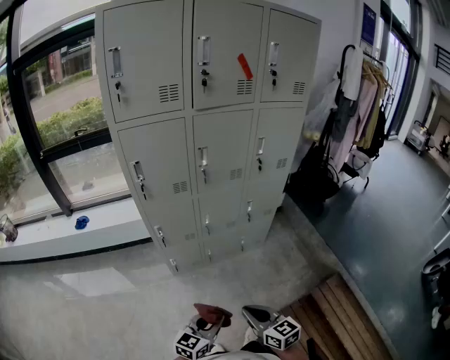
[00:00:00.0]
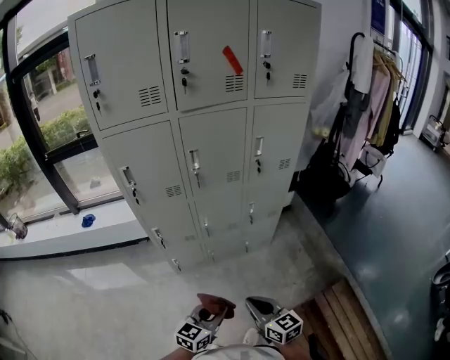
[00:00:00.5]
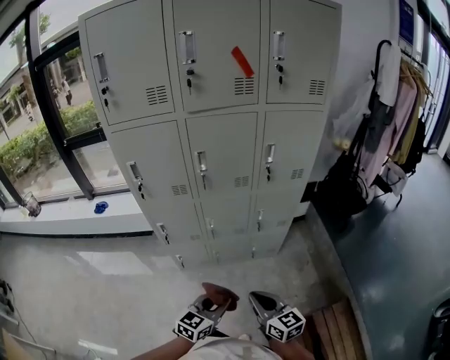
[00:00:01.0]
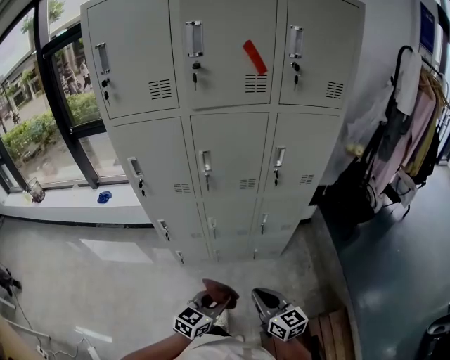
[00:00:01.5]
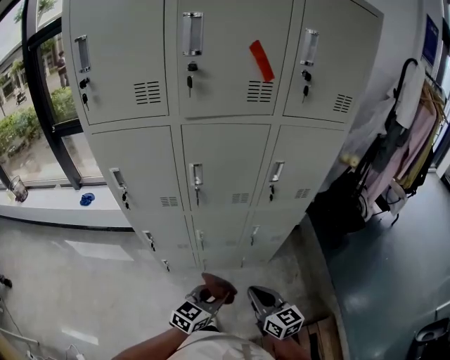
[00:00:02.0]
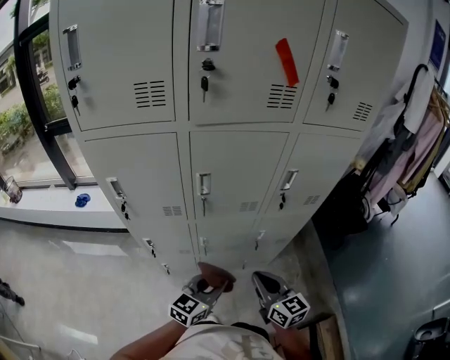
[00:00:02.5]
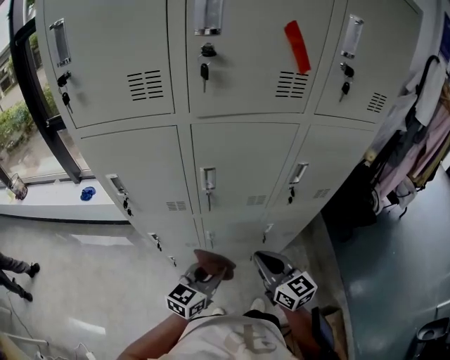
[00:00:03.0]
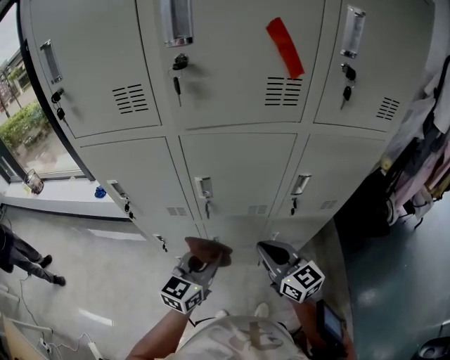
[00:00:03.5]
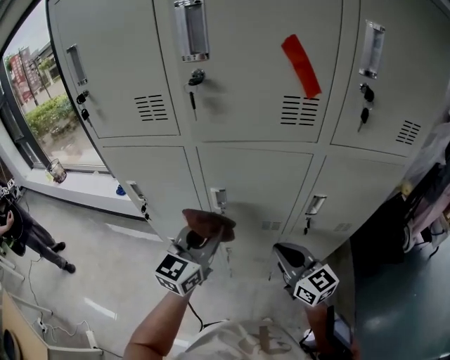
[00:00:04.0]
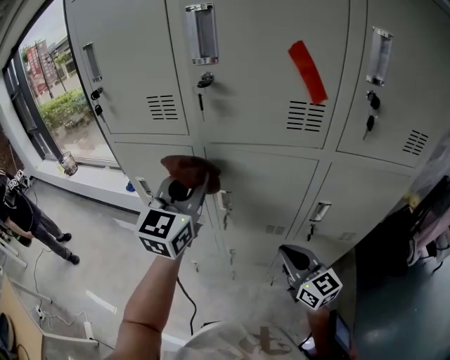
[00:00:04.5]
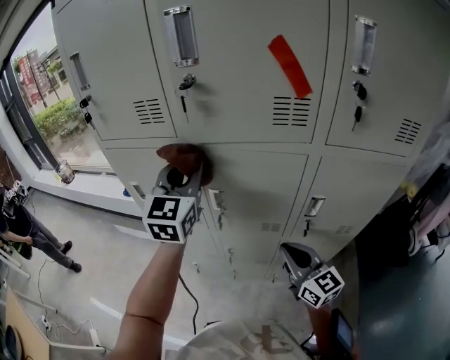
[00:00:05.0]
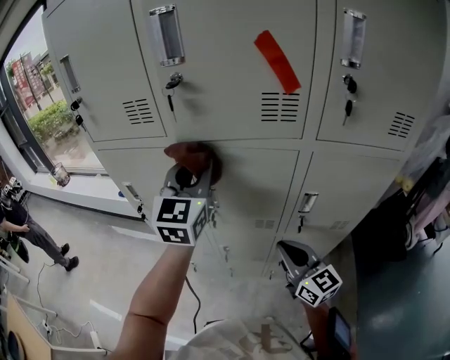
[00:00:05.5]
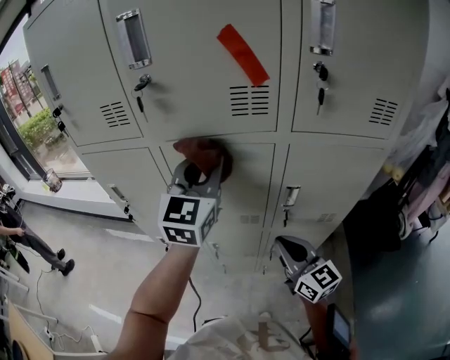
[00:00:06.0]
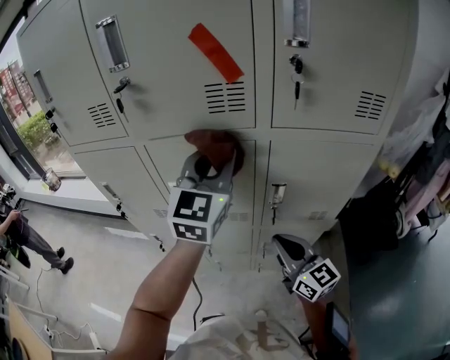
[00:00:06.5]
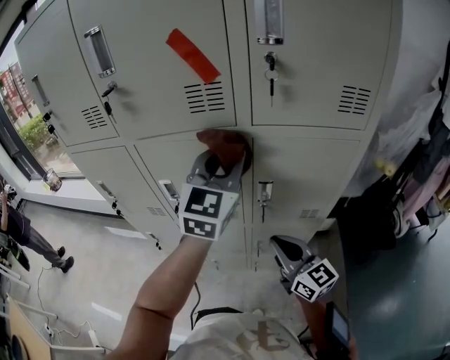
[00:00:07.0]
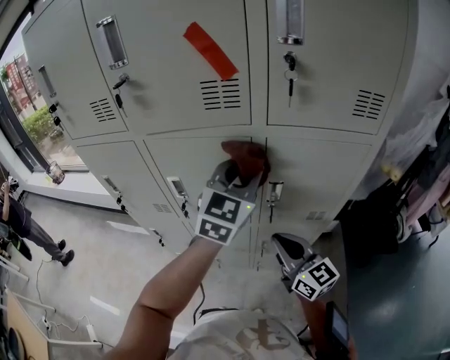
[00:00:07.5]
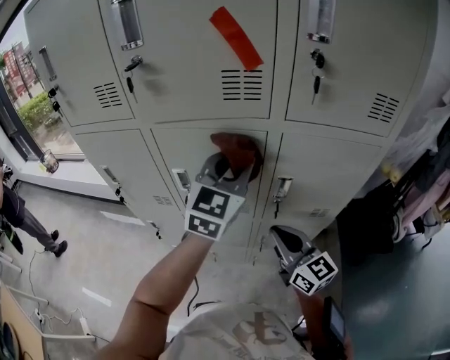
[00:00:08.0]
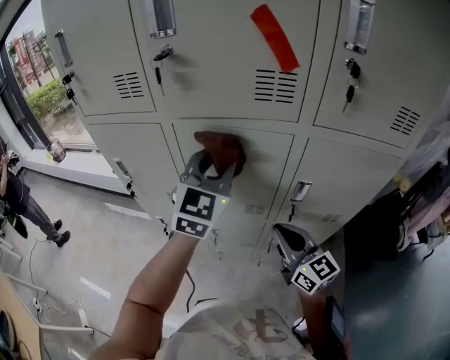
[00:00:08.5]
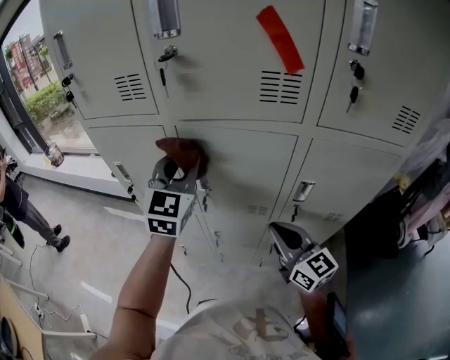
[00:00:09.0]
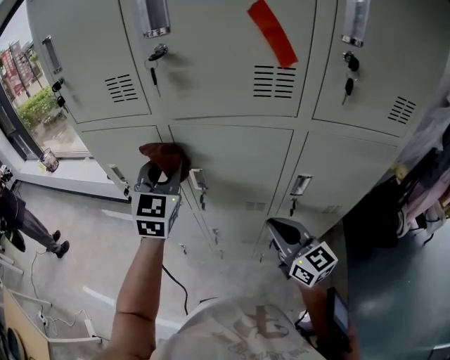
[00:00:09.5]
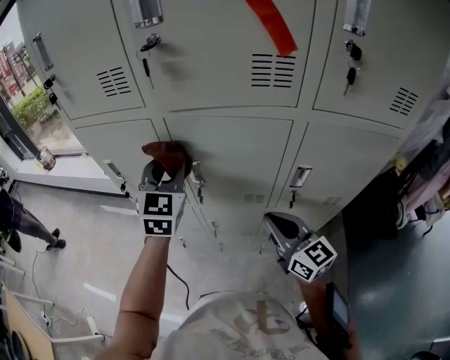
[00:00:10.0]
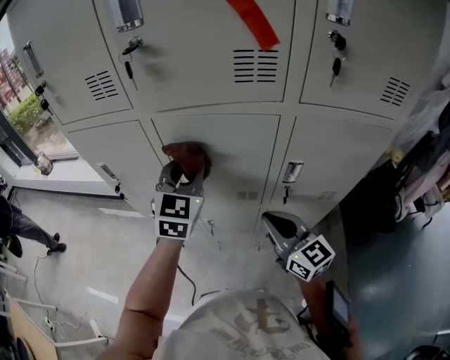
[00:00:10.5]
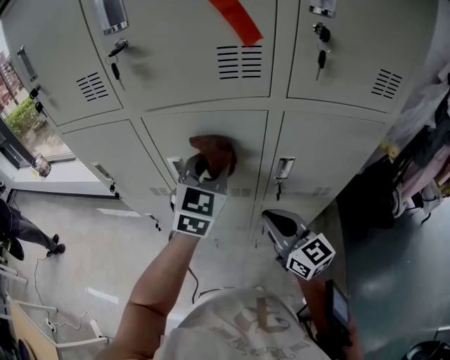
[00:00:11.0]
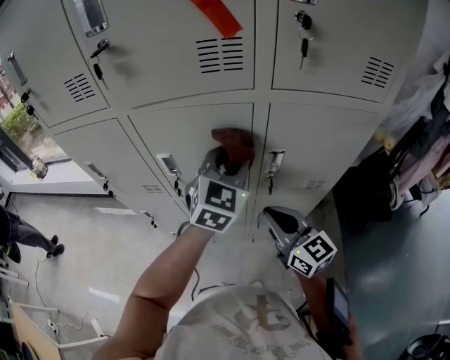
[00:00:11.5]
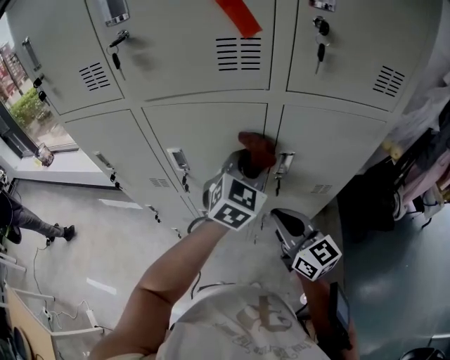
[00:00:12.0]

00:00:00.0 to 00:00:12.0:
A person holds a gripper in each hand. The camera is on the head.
00:00:00.0 to 00:00:02.0: The two grippers go some 30 cm forward and to the right.
00:00:02.0 to 00:00:04.0: Both grippers travel together forward and upward, some 30 cm. The left gripper changes its angle by roughly 30 degrees. The right gripper changes its angle by about 20 degrees.
00:00:04.0 to 00:00:06.0: The left gripper shifts roughly 20 cm upward, to the right and forward. Meanwhile the right gripper heads to the right, covering about 5 cm.
00:00:06.0 to 00:00:08.0: The left gripper is displaced to the right by about 10 cm.
00:00:08.0 to 00:00:10.0: The left gripper shifts some 20 cm to the left, and turns by approximately 20 degrees, while the right gripper goes about 5 cm to the left.
00:00:10.0 to 00:00:12.0: The right gripper moves to the right, roughly 5 cm; the left gripper moves to the right, about 25 cm, and turns by about 30 degrees.

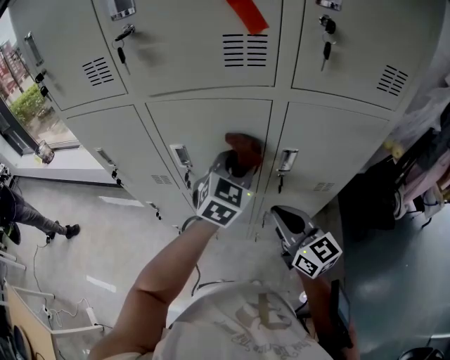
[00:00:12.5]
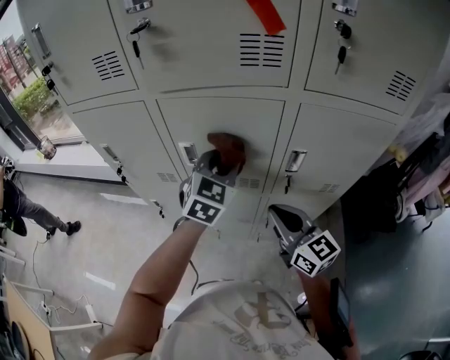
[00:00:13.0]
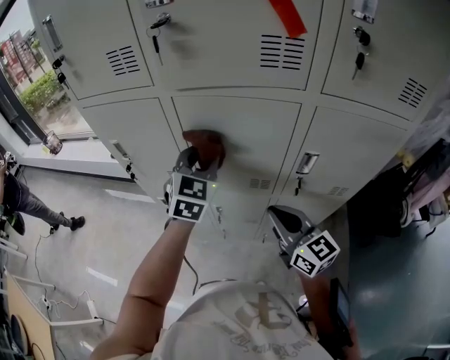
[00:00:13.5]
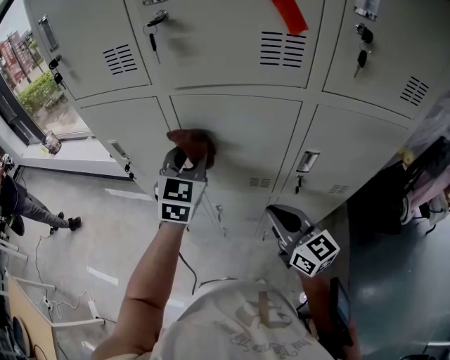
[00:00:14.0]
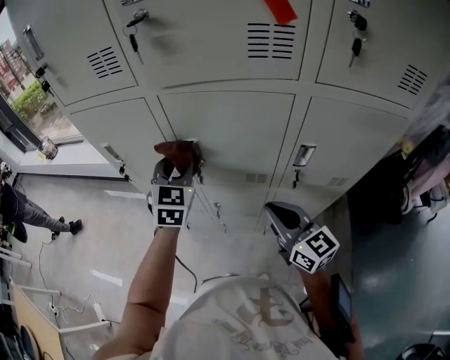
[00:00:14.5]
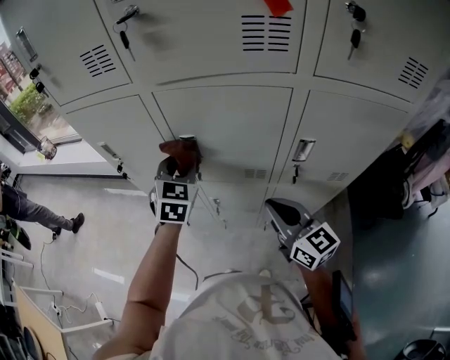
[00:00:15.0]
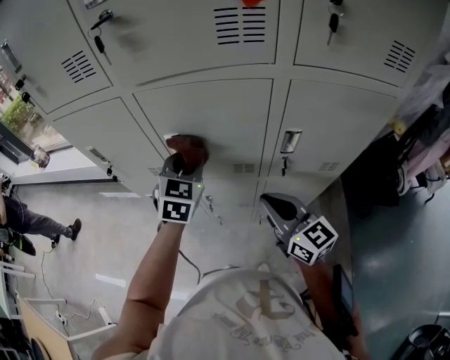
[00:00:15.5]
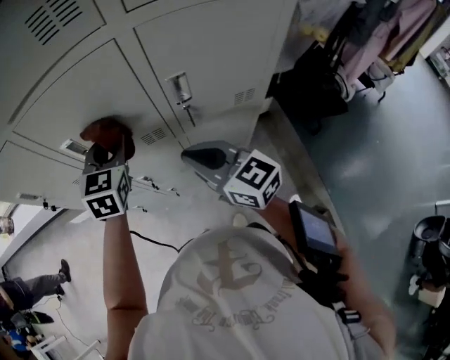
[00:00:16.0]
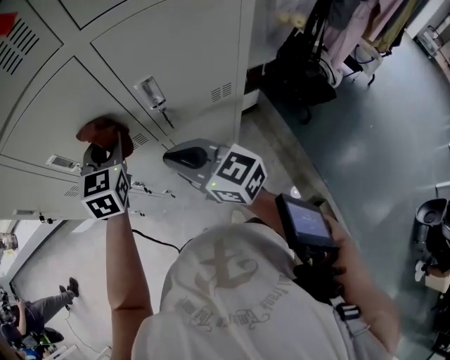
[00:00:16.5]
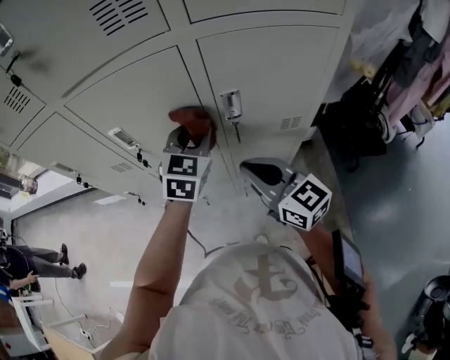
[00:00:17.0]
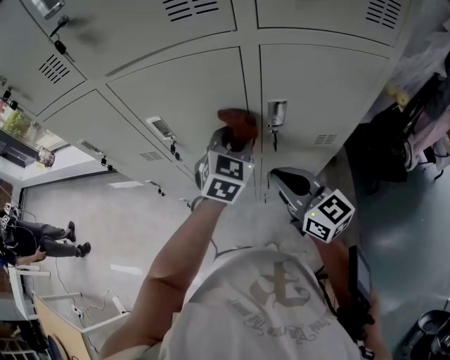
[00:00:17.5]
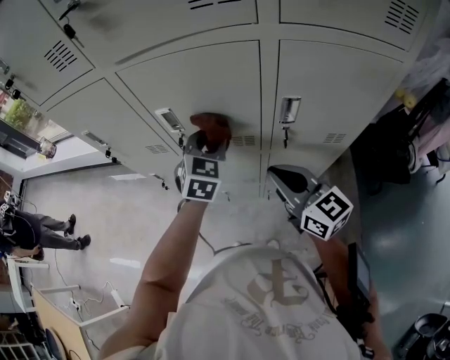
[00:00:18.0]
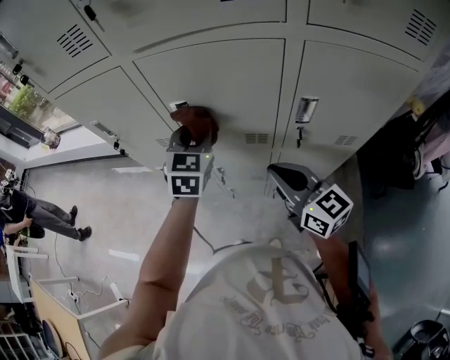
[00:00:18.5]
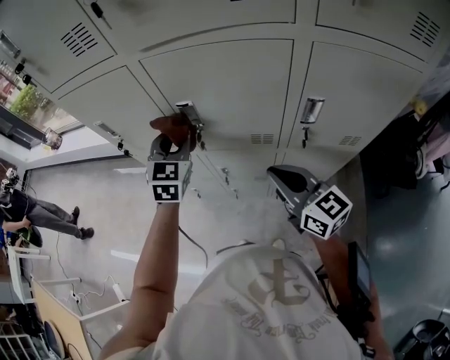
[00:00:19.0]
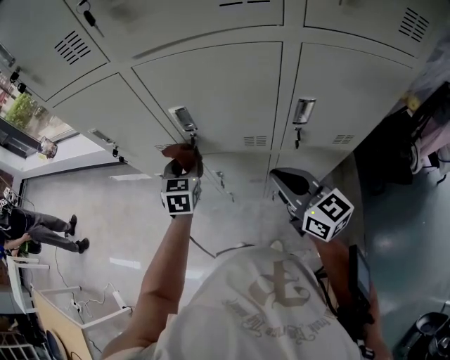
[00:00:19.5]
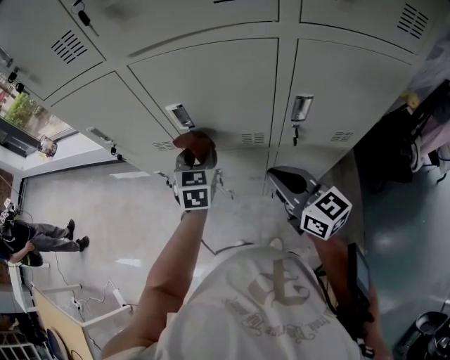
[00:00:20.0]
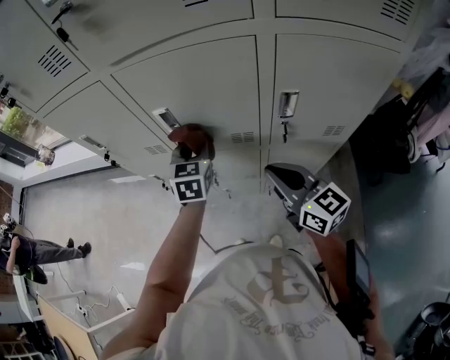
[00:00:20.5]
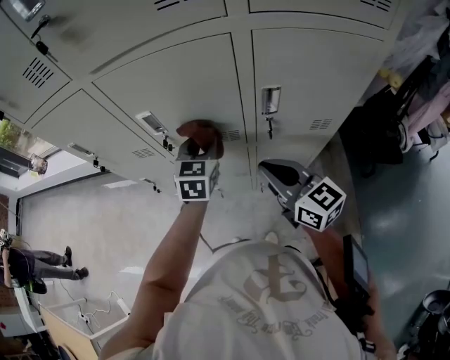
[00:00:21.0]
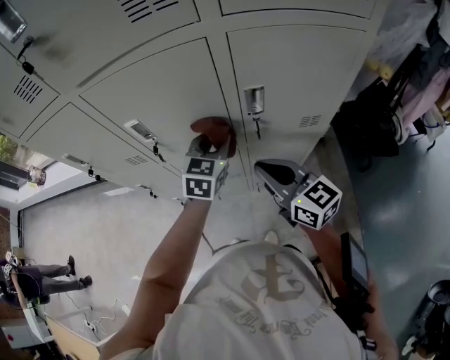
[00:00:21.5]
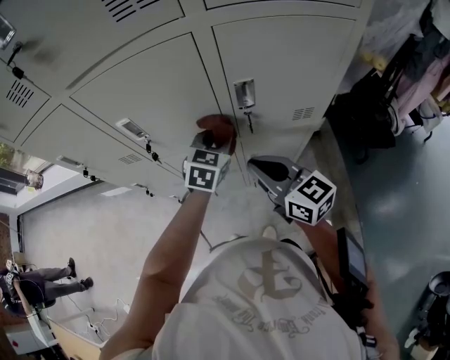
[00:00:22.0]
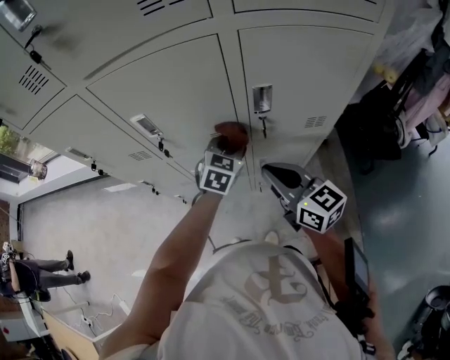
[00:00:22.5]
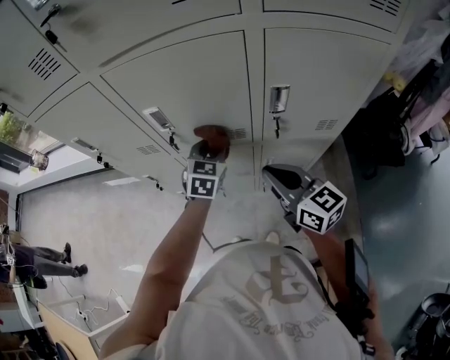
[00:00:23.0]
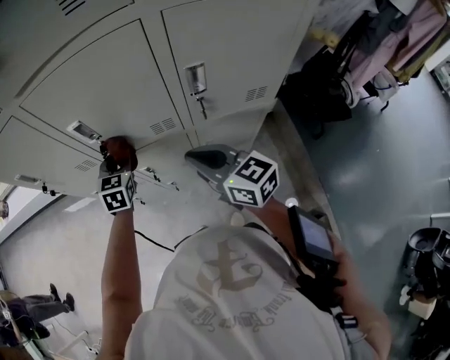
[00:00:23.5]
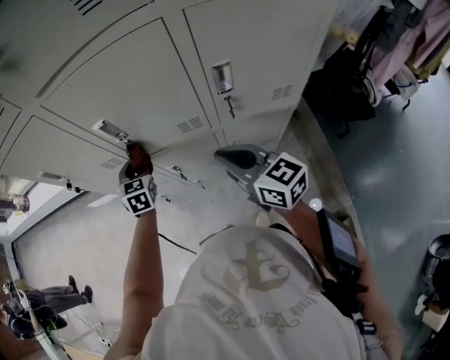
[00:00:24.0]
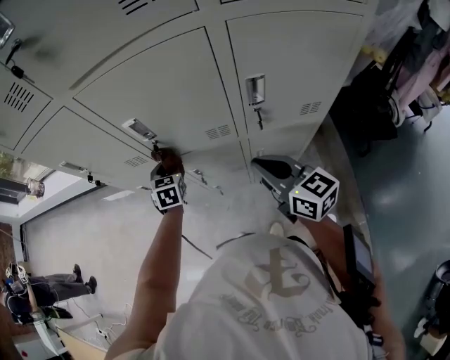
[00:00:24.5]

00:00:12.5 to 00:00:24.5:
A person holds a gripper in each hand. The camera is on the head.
00:00:12.5 to 00:00:14.5: The left gripper moves to the left, about 20 cm, and changes its angle by approximately 20 degrees. The right gripper heads to the left, covering roughly 5 cm.
00:00:14.5 to 00:00:16.5: The left gripper is displaced to the right by approximately 20 cm.
00:00:16.5 to 00:00:18.5: The left gripper travels to the left by approximately 10 cm.
00:00:18.5 to 00:00:20.5: The left gripper travels downward by some 5 cm.
00:00:20.5 to 00:00:22.5: The left gripper is displaced to the right by approximately 15 cm, and turns by approximately 30 degrees.
00:00:22.5 to 00:00:24.5: The left gripper travels to the left by approximately 25 cm, and turns by some 30 degrees.

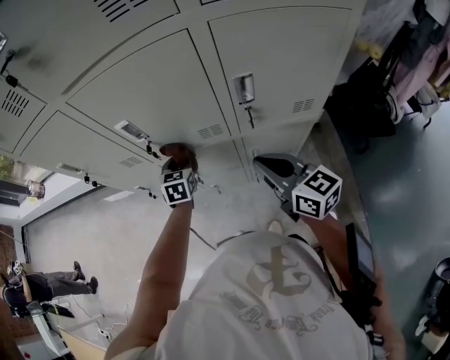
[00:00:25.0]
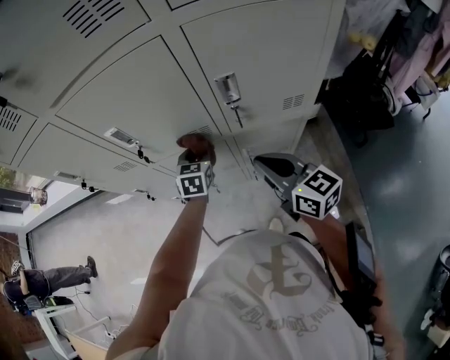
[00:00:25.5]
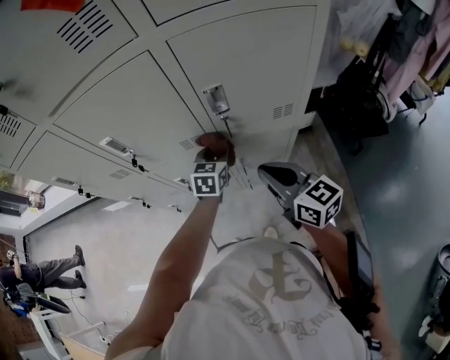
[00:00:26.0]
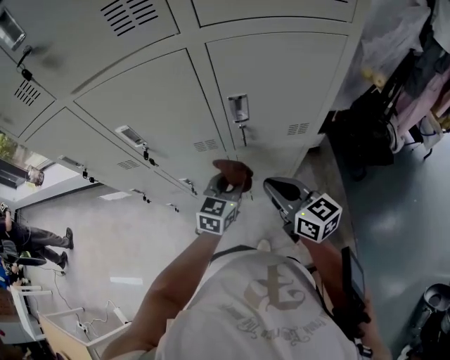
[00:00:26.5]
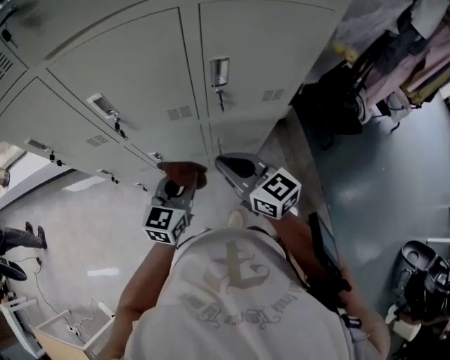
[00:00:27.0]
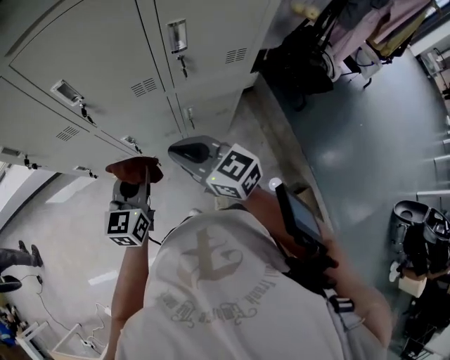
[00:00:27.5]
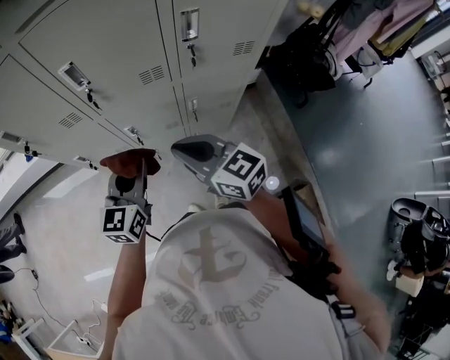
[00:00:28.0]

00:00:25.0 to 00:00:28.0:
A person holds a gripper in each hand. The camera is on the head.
00:00:25.0 to 00:00:26.5: The right gripper goes some 5 cm to the right. Meanwhile the left gripper travels to the right and backward by roughly 25 cm, and changes its angle by roughly 30 degrees.
00:00:26.5 to 00:00:28.0: Both grippers move to the left and backward, about 20 cm.
